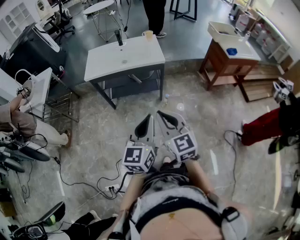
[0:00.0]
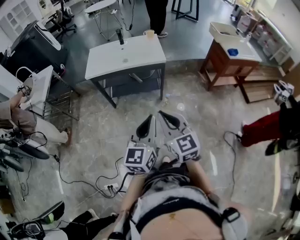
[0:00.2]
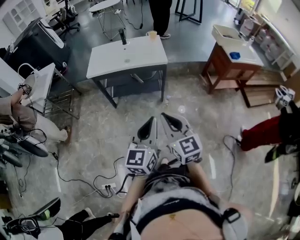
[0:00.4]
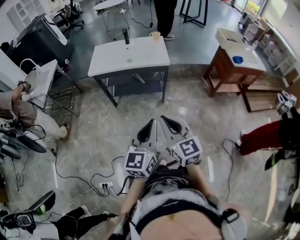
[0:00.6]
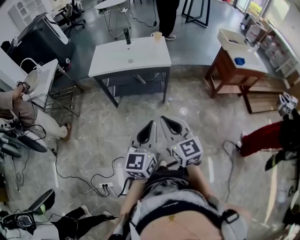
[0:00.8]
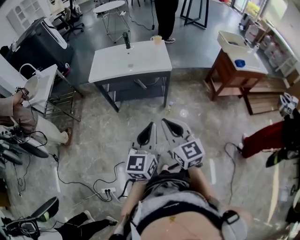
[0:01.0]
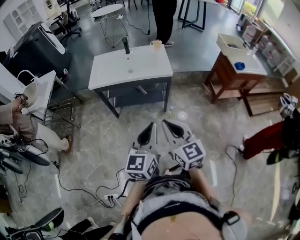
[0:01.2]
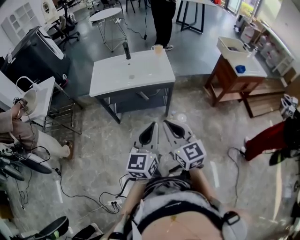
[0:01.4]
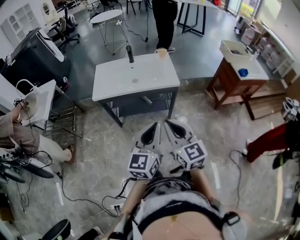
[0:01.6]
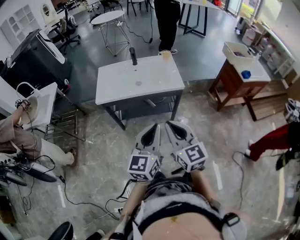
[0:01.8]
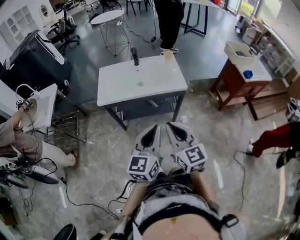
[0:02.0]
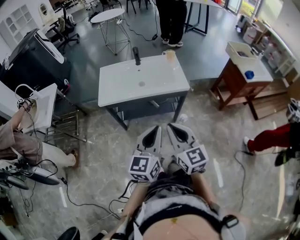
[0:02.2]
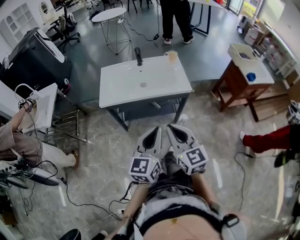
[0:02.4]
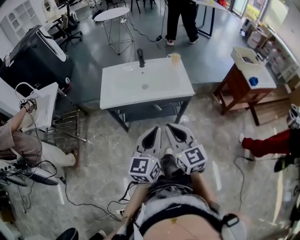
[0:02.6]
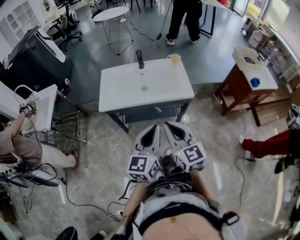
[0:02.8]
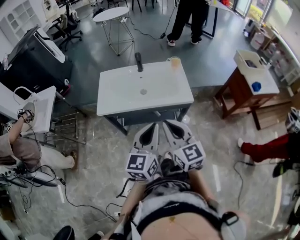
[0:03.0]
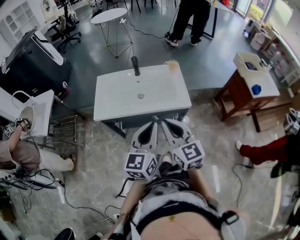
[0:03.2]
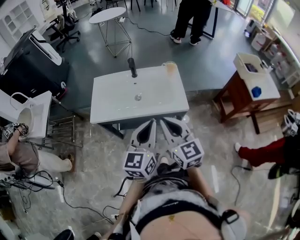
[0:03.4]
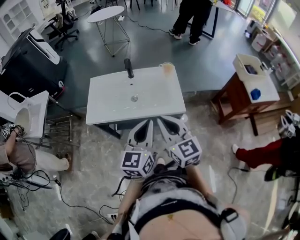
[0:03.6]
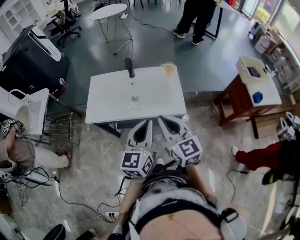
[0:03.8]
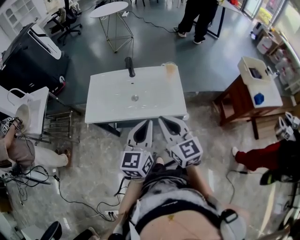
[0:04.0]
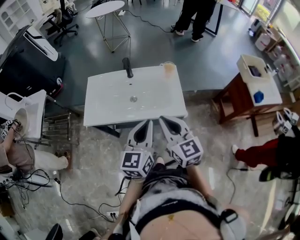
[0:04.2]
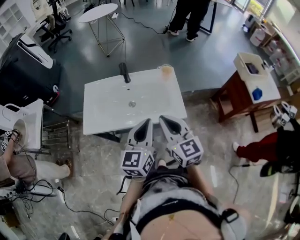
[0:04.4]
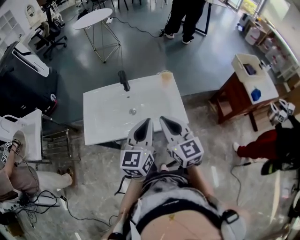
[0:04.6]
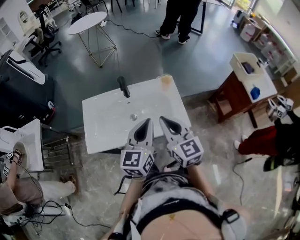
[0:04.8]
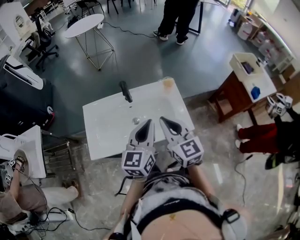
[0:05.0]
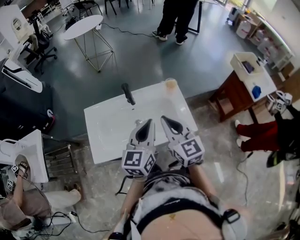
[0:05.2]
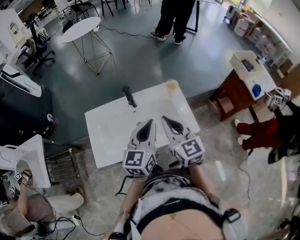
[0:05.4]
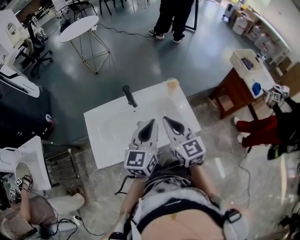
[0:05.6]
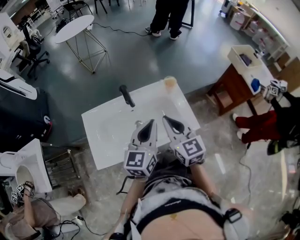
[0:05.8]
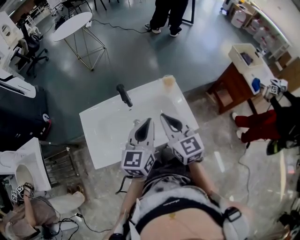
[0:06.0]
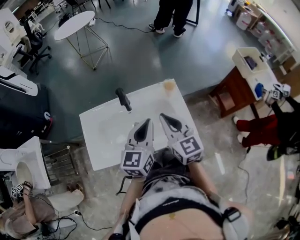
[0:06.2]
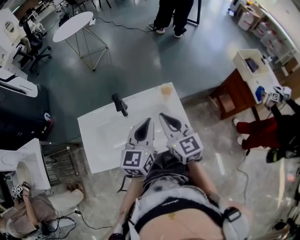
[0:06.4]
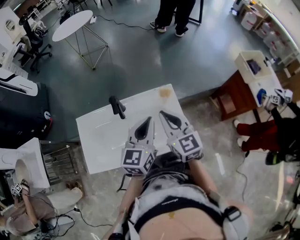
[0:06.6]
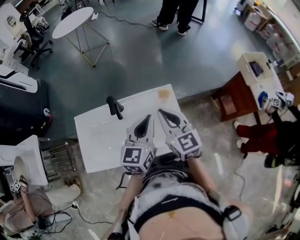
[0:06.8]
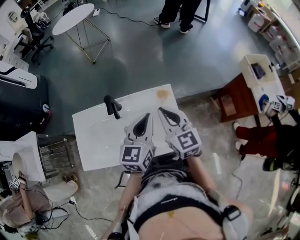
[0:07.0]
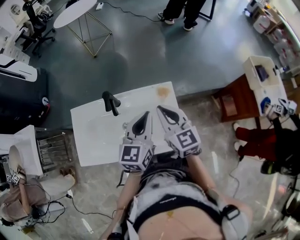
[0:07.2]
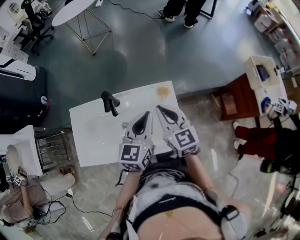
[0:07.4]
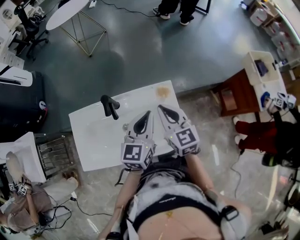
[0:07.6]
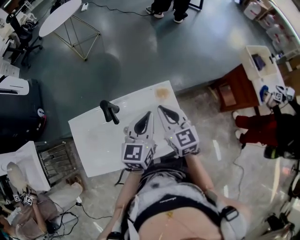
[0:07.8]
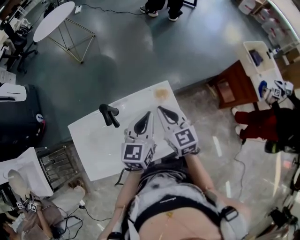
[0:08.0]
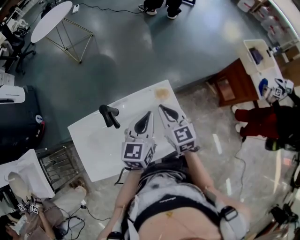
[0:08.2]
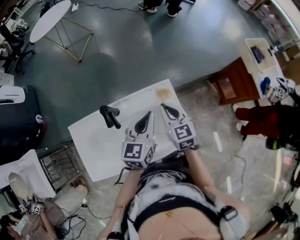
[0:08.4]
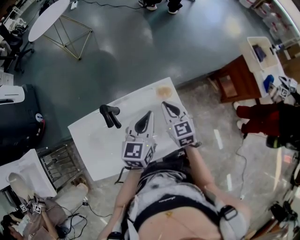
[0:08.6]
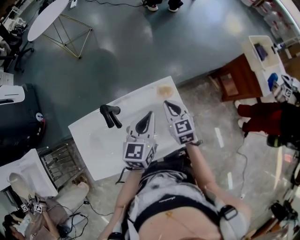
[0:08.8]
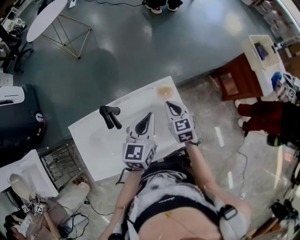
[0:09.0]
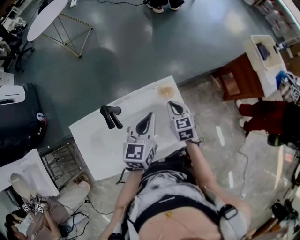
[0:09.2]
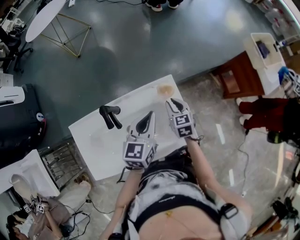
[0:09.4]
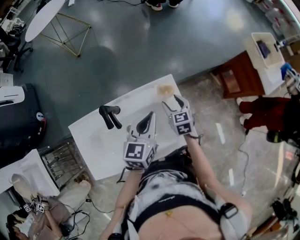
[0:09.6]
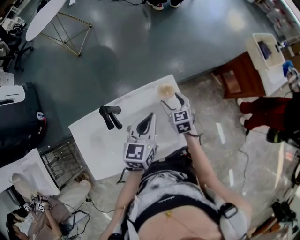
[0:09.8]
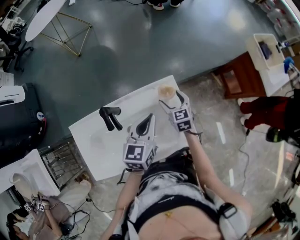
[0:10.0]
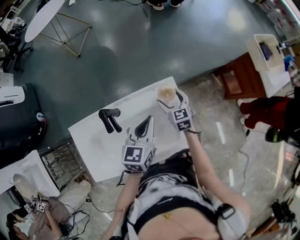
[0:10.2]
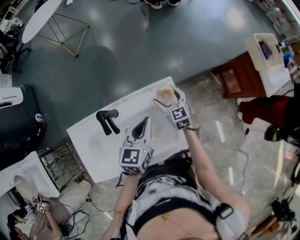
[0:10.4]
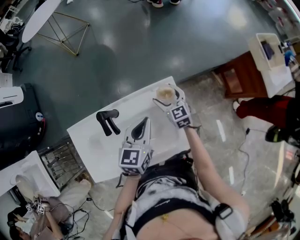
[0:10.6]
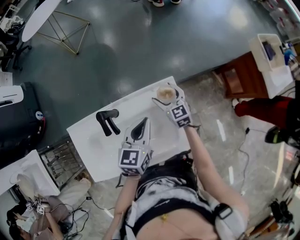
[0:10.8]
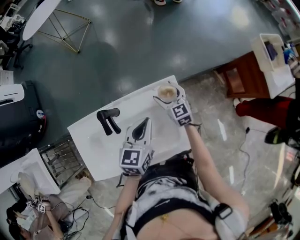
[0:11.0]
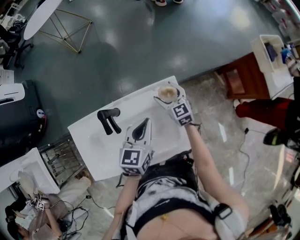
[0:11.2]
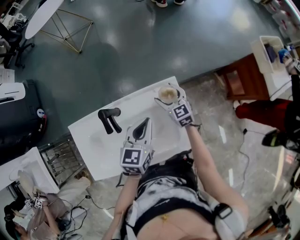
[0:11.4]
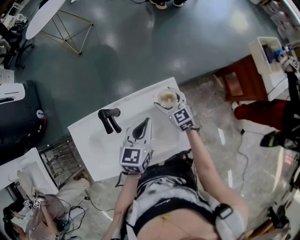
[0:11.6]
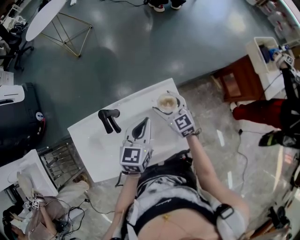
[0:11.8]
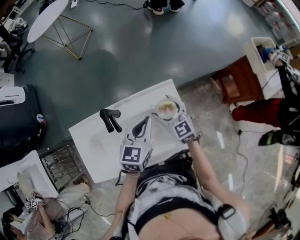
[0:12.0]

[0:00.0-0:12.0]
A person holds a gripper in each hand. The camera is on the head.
0:00.0 to 0:01.6: Both grippers move forward, roughly 15 cm.
0:01.6 to 0:03.0: The grippers both shift forward by some 15 cm.
0:03.0 to 0:04.4: Both grippers move forward and to the right, approximately 20 cm.
0:04.4 to 0:06.0: Both grippers move forward, some 15 cm.
0:06.0 to 0:07.6: Both grippers move forward and to the right, roughly 15 cm.
0:07.6 to 0:09.0: The right gripper heads downward, covering some 15 cm, and swivels roughly 20 degrees. The left gripper travels downward by some 5 cm.
0:09.0 to 0:10.4: The right gripper travels forward and downward by roughly 10 cm, and opens up.
0:10.4 to 0:12.0: The right gripper goes approximately 10 cm upward and backward.

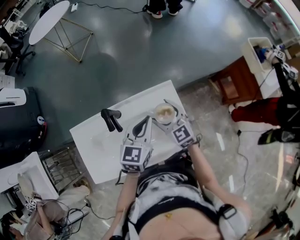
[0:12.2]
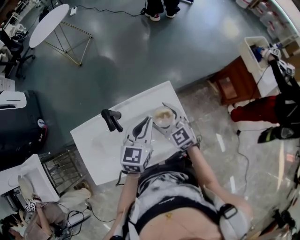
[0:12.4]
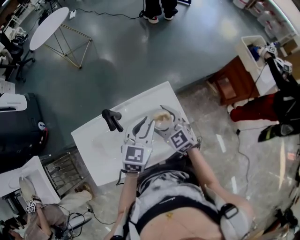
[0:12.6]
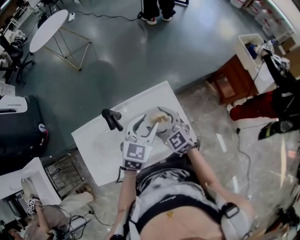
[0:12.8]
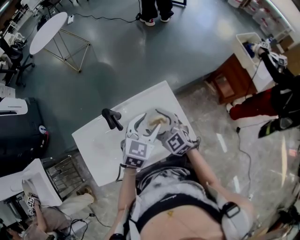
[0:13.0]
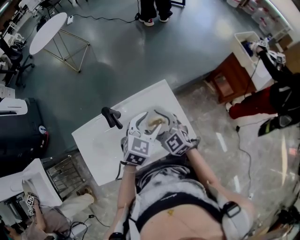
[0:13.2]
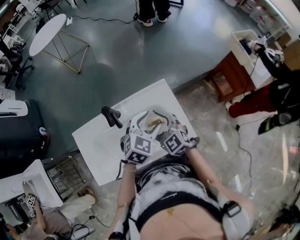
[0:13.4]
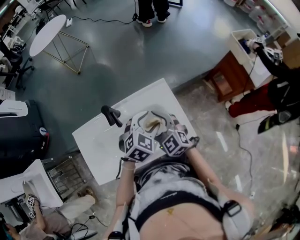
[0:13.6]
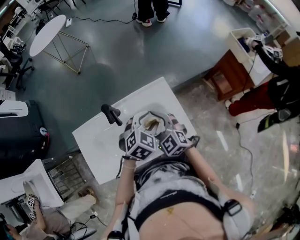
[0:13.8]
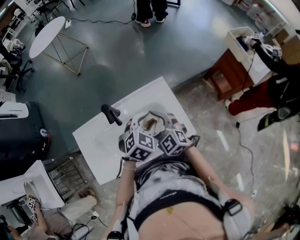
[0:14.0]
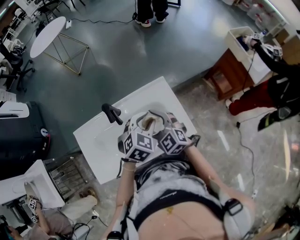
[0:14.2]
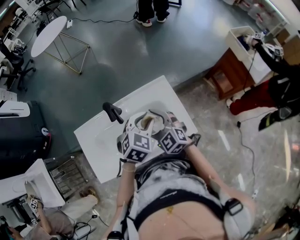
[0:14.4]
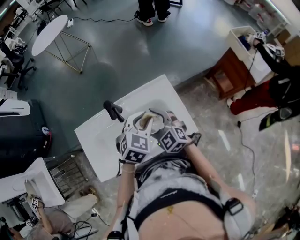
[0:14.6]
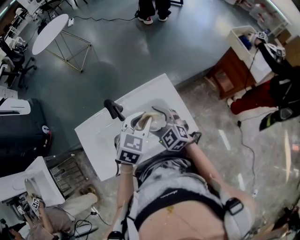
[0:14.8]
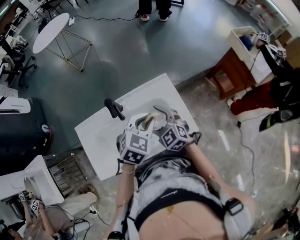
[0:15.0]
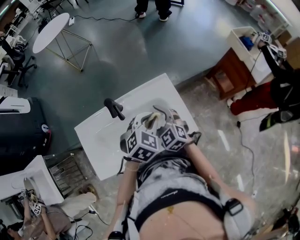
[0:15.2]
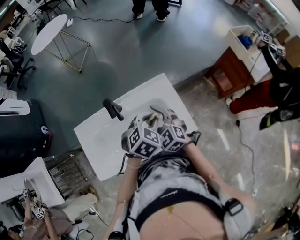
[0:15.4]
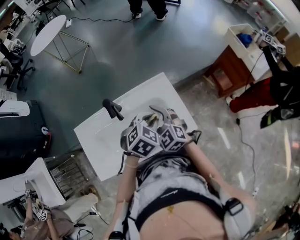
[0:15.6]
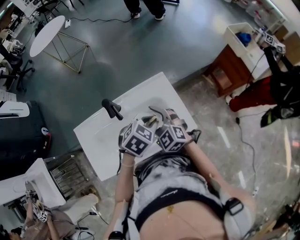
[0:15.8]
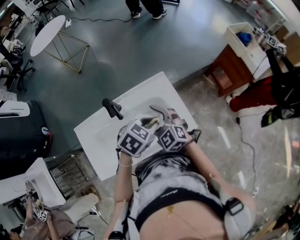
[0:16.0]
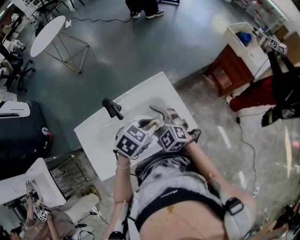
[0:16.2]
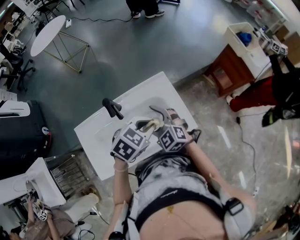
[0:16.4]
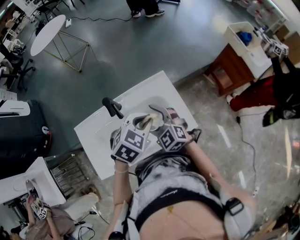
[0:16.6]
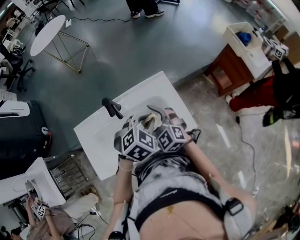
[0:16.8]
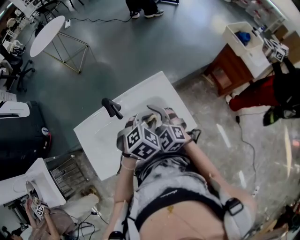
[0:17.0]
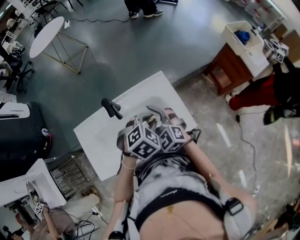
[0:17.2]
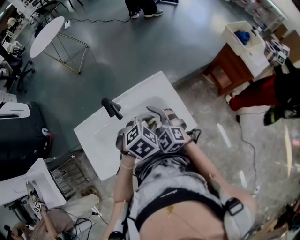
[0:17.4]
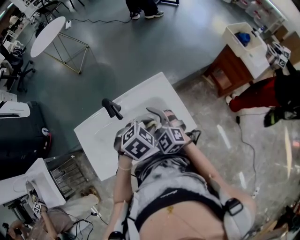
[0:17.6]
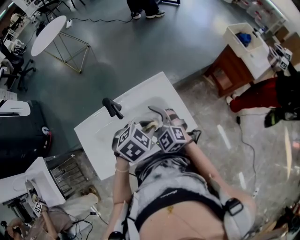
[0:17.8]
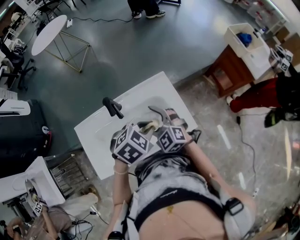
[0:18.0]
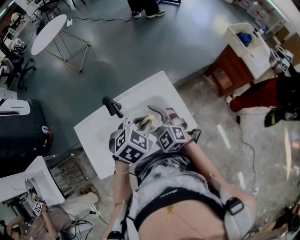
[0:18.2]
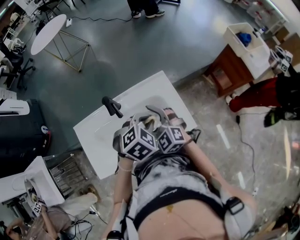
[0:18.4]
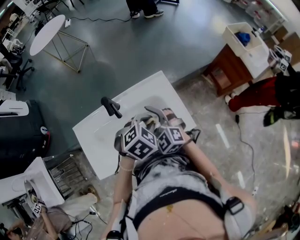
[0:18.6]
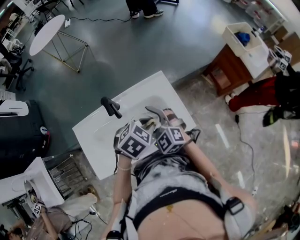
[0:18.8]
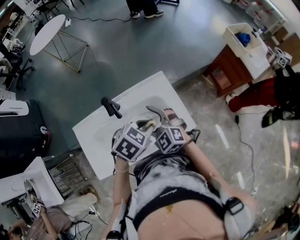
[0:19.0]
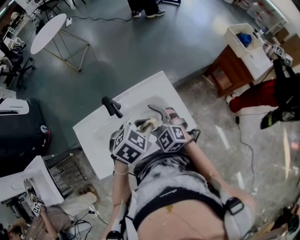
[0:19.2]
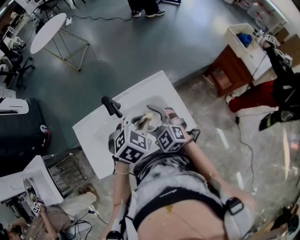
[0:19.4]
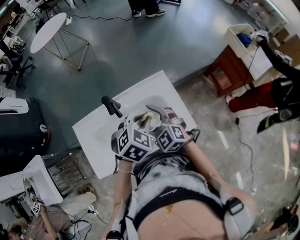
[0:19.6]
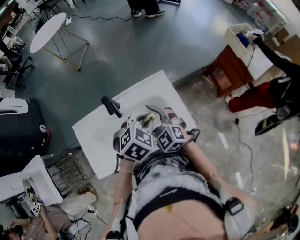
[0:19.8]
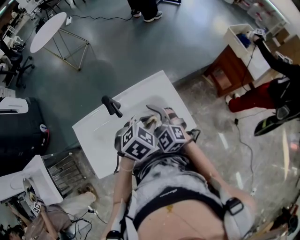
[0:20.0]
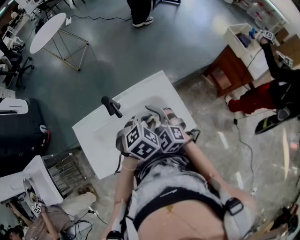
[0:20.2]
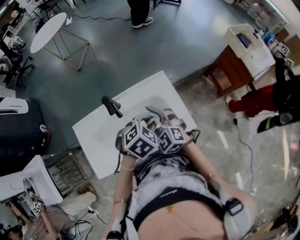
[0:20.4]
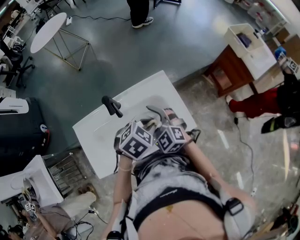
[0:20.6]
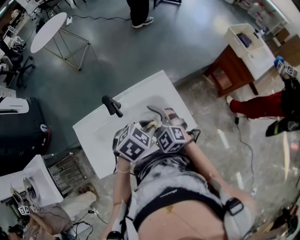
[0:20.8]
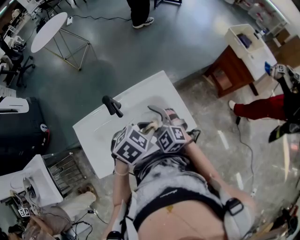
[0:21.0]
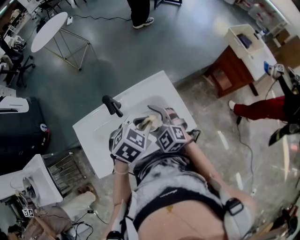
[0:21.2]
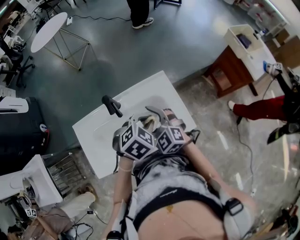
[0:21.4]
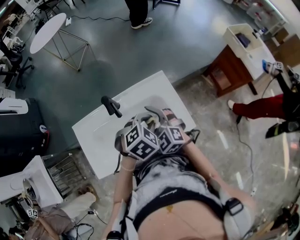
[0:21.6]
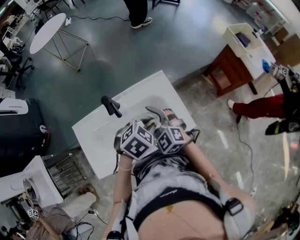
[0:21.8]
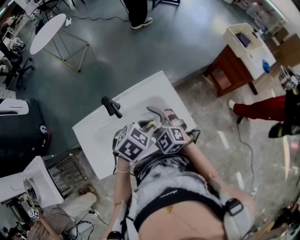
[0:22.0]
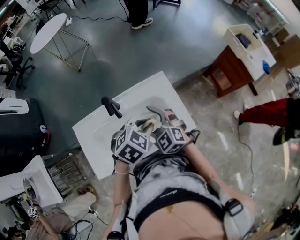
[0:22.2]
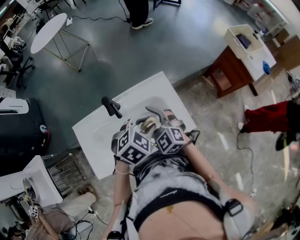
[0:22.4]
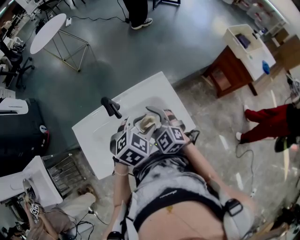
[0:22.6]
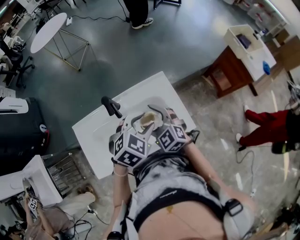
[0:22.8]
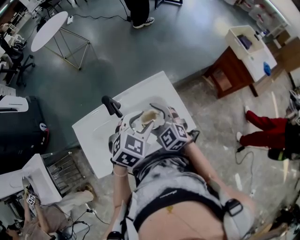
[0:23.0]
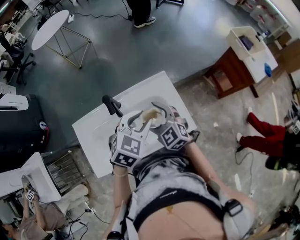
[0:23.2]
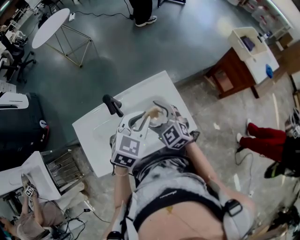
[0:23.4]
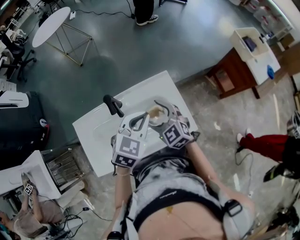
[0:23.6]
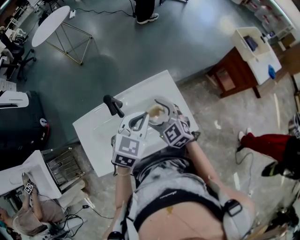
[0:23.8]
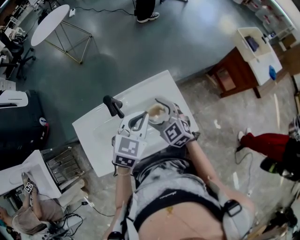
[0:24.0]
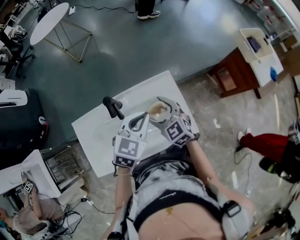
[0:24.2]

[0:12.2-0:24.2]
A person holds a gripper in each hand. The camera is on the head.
0:12.2 to 0:13.8: The left gripper shifts approximately 5 cm backward, turns by approximately 40 degrees, and opens up. Meanwhile the right gripper goes approximately 10 cm backward and to the left.
0:13.8 to 0:15.2: The left gripper closes up.
0:16.6 to 0:21.2: The grippers move only a little.
0:21.2 to 0:22.6: The left gripper opens its fingers.
0:22.6 to 0:24.2: The two grippers go about 5 cm forward. The left gripper changes its angle by roughly 20 degrees, and closes.
